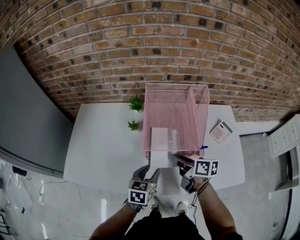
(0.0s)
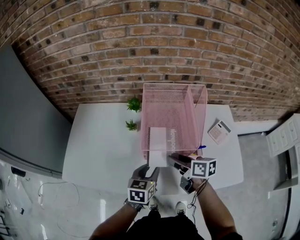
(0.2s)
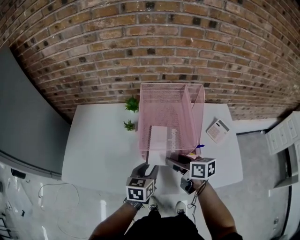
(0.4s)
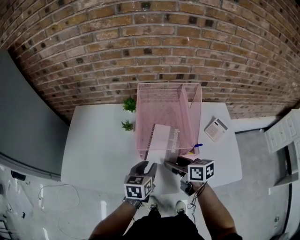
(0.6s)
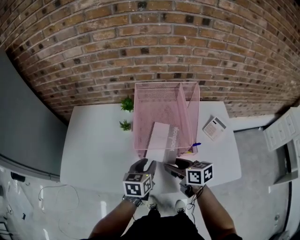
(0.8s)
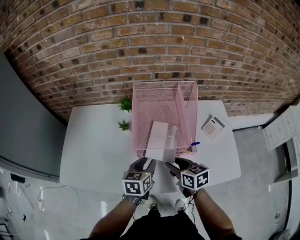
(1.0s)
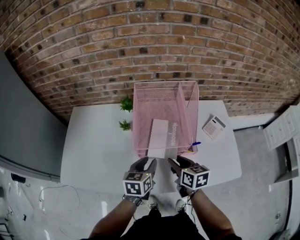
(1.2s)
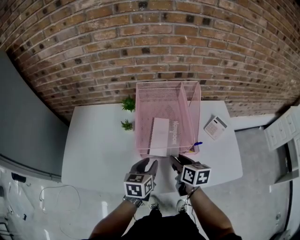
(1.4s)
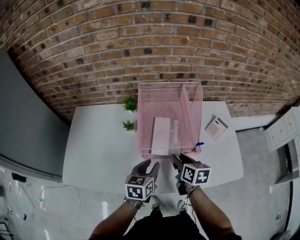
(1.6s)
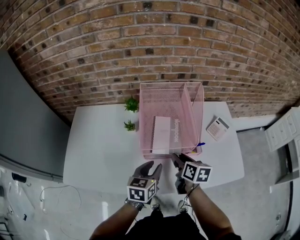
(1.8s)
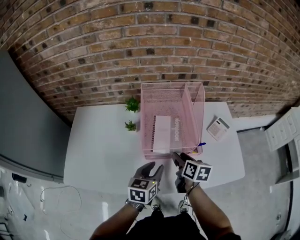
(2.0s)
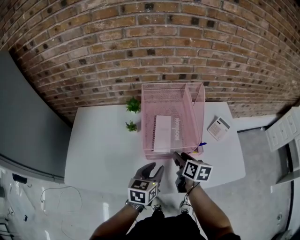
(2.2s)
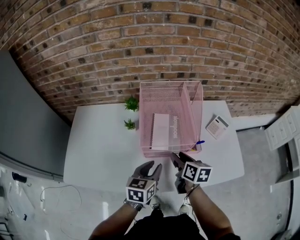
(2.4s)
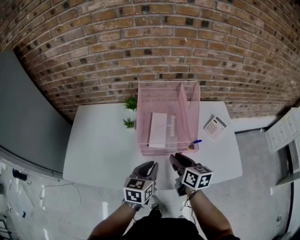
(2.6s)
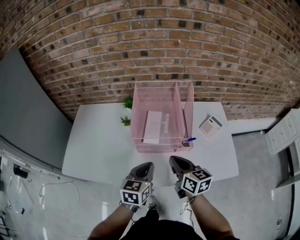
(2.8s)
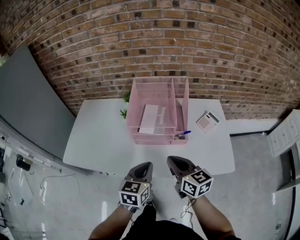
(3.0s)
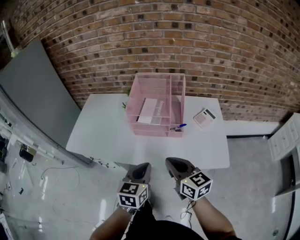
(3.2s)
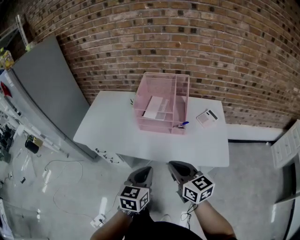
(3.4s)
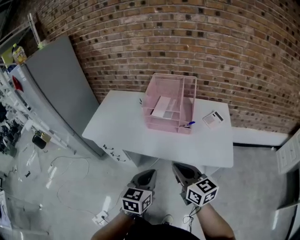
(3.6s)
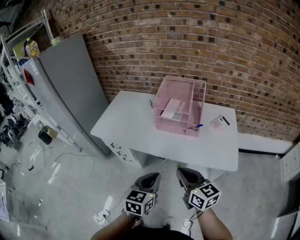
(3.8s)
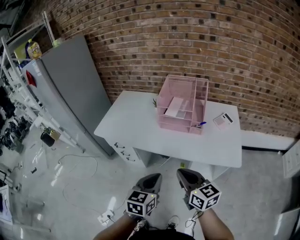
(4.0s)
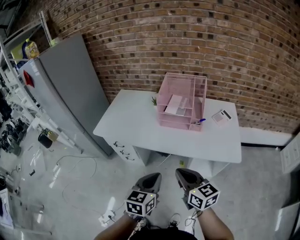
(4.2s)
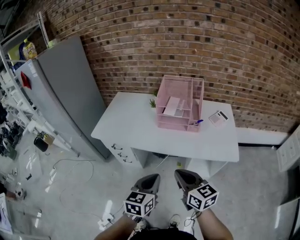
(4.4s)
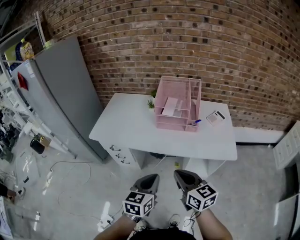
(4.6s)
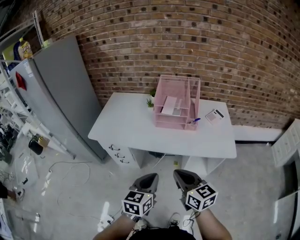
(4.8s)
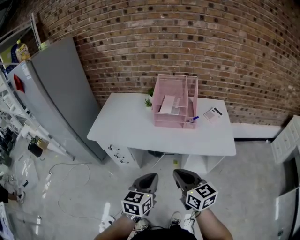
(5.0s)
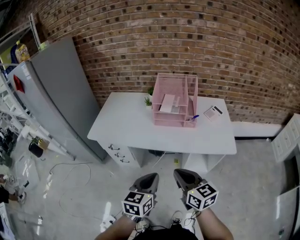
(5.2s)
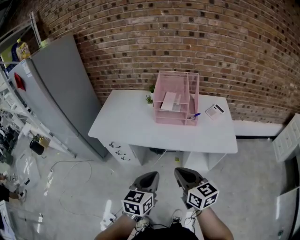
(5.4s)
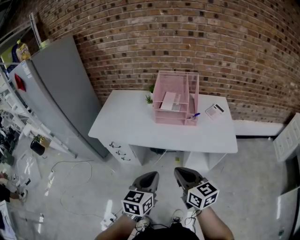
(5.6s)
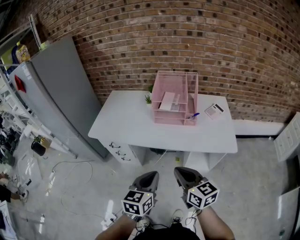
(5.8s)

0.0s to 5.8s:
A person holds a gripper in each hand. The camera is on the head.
0.0s to 1.4s: The right gripper rotates roughly 30 degrees.
1.4s to 2.8s: The left gripper travels backward and upward by roughly 10 cm, and closes its fingers. Meanwhile the right gripper moves upward and backward, approximately 10 cm, and closes its fingers.
2.8s to 4.4s: The grippers both shift backward by roughly 30 cm. The right gripper changes its angle by about 20 degrees.
4.4s to 5.8s: The grippers move only a little.

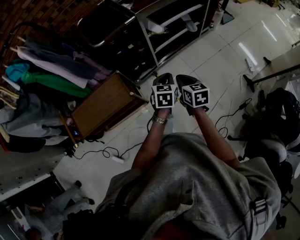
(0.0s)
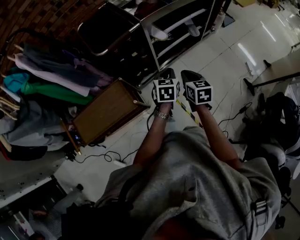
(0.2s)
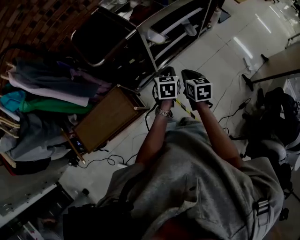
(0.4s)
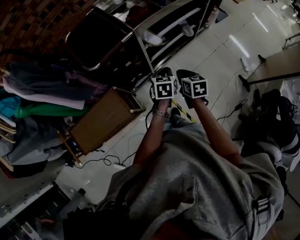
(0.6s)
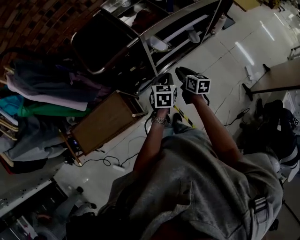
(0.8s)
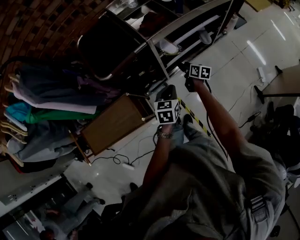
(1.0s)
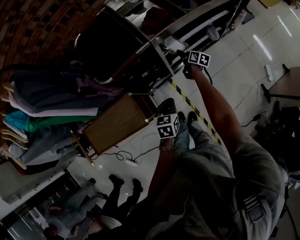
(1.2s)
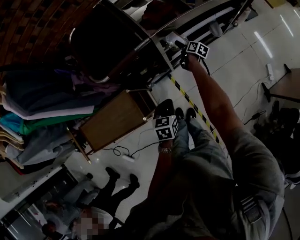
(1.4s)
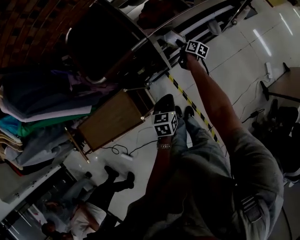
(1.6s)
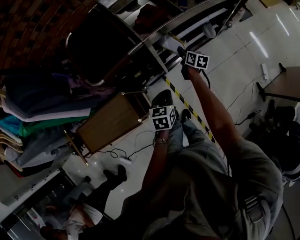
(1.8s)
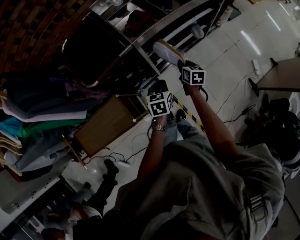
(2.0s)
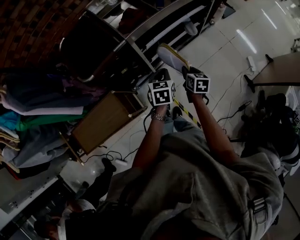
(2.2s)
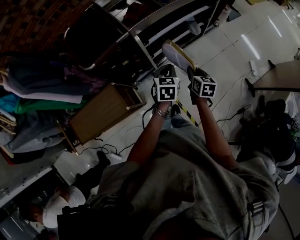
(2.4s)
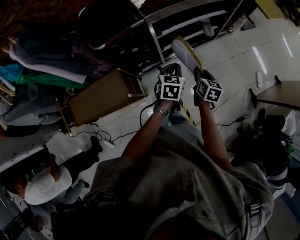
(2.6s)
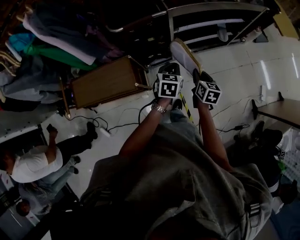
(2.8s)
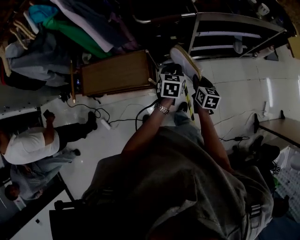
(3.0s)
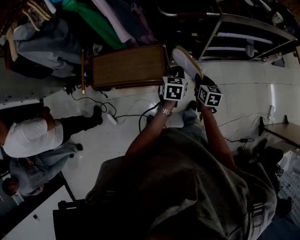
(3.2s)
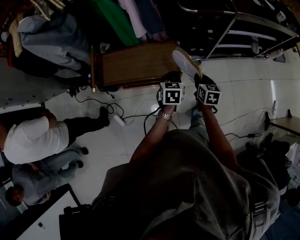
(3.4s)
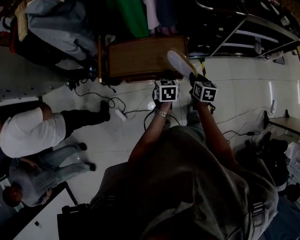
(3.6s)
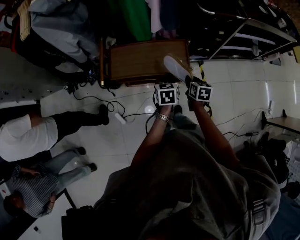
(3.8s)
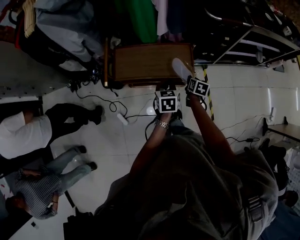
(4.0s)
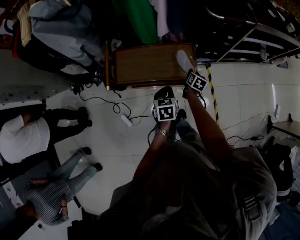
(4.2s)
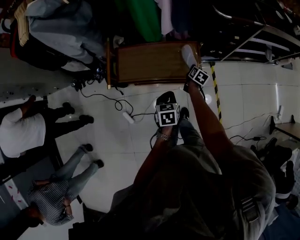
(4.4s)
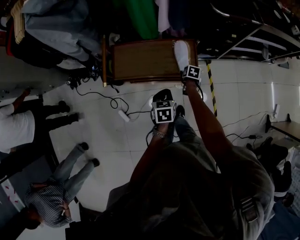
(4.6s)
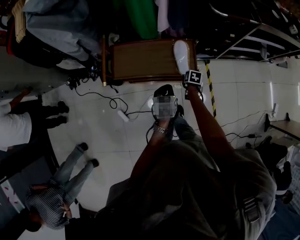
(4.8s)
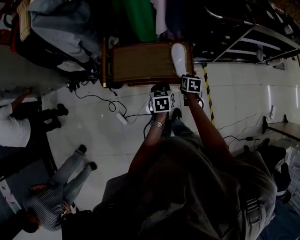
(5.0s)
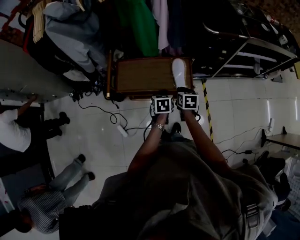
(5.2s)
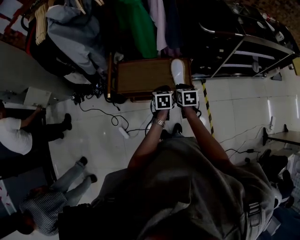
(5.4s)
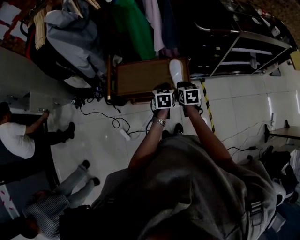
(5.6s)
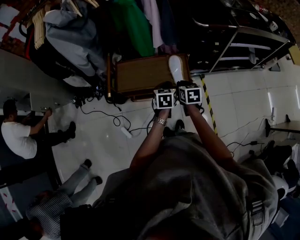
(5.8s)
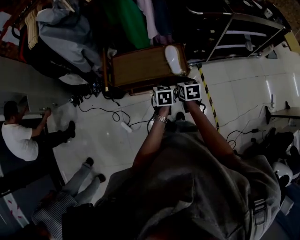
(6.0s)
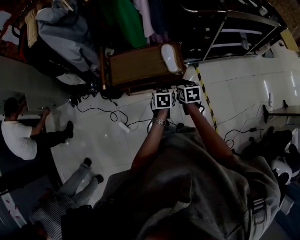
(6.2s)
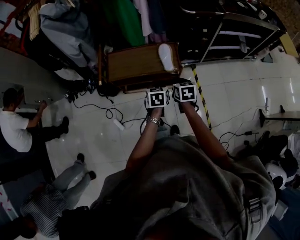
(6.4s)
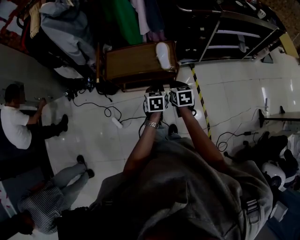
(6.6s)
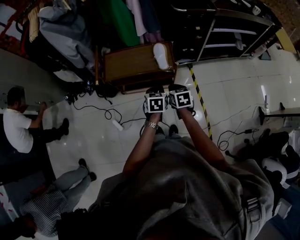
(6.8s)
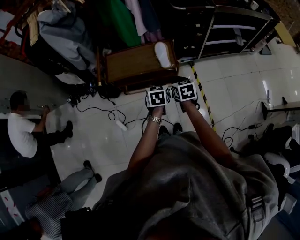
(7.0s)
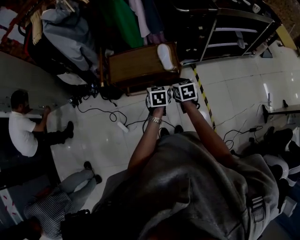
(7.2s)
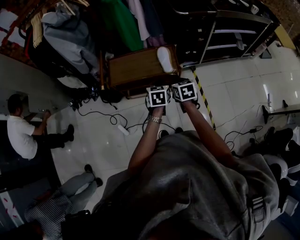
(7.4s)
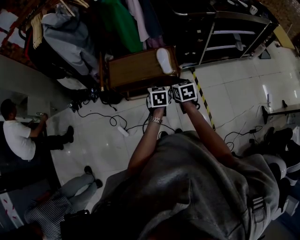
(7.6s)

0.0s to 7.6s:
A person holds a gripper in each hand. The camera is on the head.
0.0s to 1.6s: The left gripper travels forward, downward and to the left by approximately 20 cm. Meanwhile the right gripper travels forward and downward by roughly 50 cm, rolls clockwise, seen from behind, by about 40 degrees, and opens and closes again.
1.6s to 3.0s: The right gripper is displaced backward and upward by about 40 cm, and rotates around the line of its fingers by roughly 40 degrees, counterclockwise from behind. Meanwhile the left gripper goes about 10 cm upward and backward, and travels to the right and back again, approximately 15 cm each way.
3.0s to 4.6s: The pair of grippers is taken to the left, about 40 cm. The right gripper travels downward by some 20 cm, tilts its fingers about 30 degrees downward, and opens.
4.6s to 6.0s: The right gripper goes about 30 cm upward and backward, changes its angle by about 30 degrees, and closes up. The left gripper goes roughly 5 cm upward.
6.0s to 7.6s: The grippers both shift backward by roughly 5 cm.

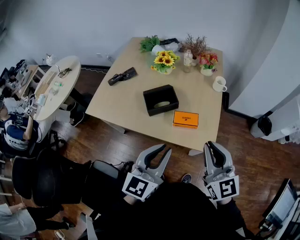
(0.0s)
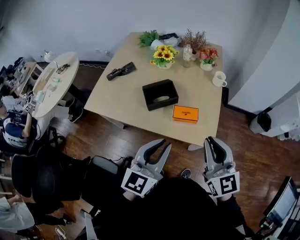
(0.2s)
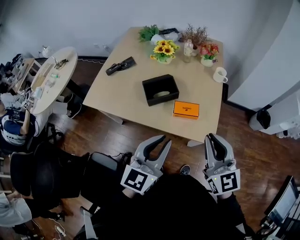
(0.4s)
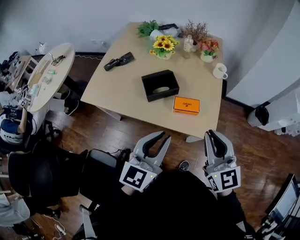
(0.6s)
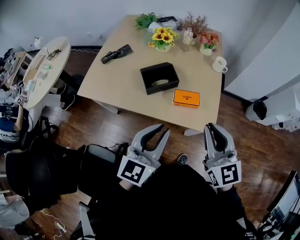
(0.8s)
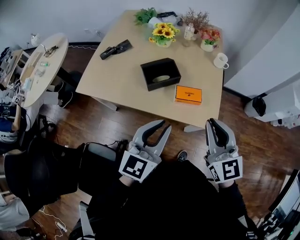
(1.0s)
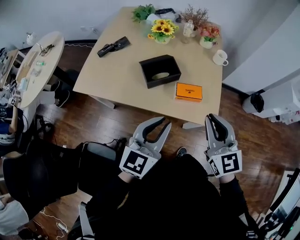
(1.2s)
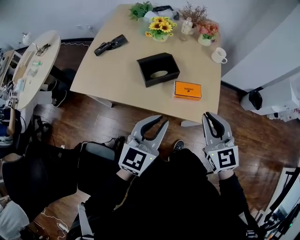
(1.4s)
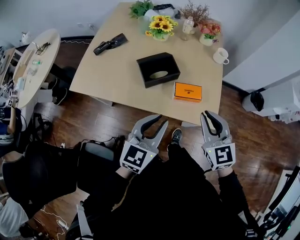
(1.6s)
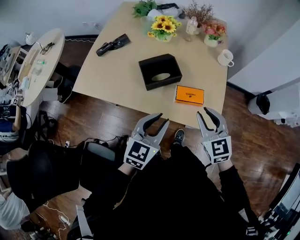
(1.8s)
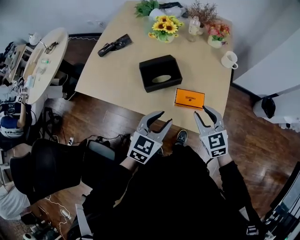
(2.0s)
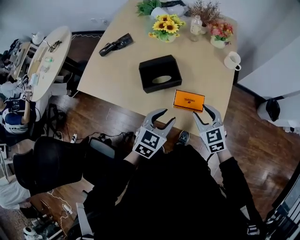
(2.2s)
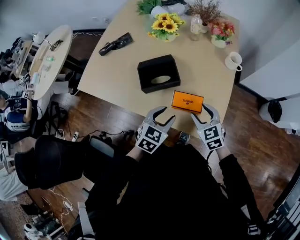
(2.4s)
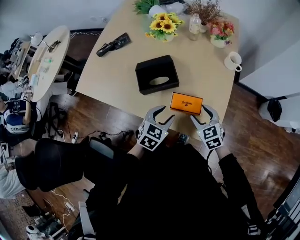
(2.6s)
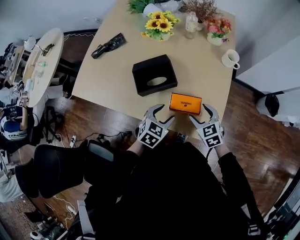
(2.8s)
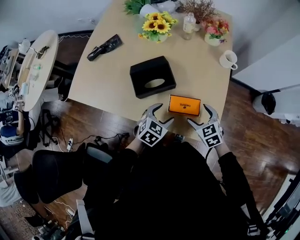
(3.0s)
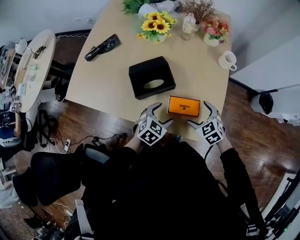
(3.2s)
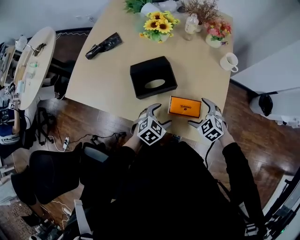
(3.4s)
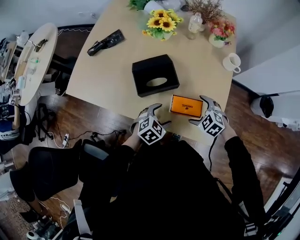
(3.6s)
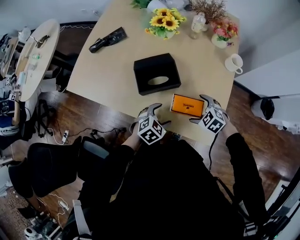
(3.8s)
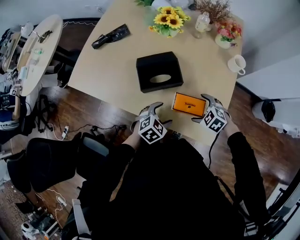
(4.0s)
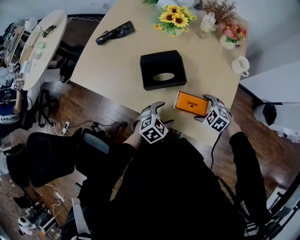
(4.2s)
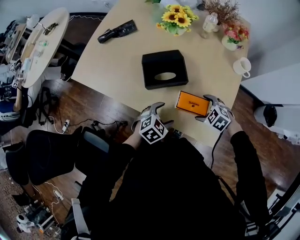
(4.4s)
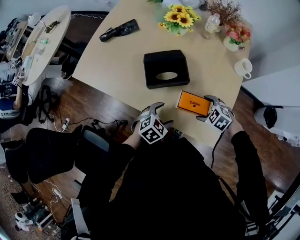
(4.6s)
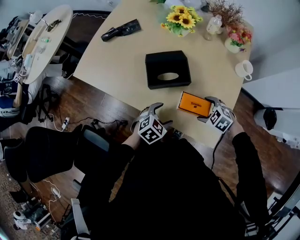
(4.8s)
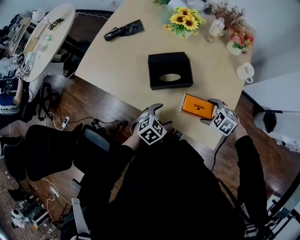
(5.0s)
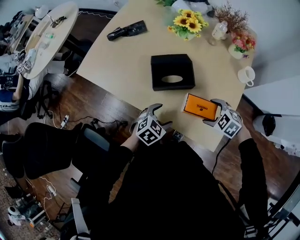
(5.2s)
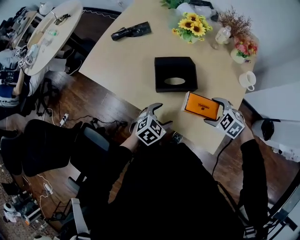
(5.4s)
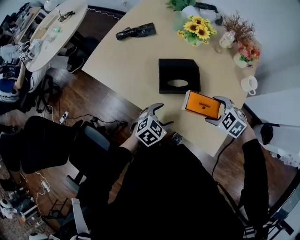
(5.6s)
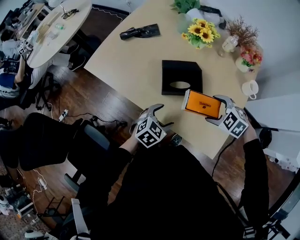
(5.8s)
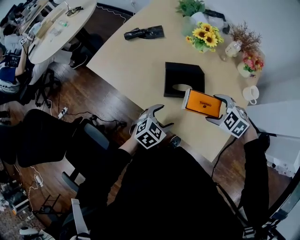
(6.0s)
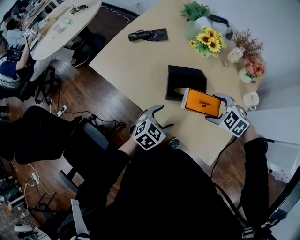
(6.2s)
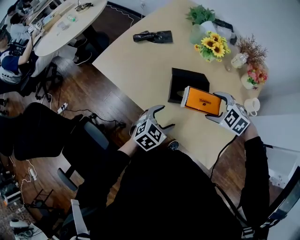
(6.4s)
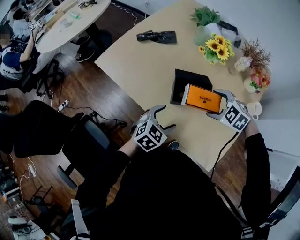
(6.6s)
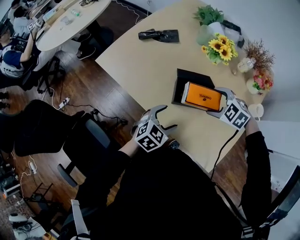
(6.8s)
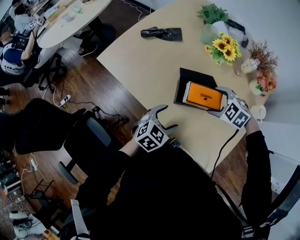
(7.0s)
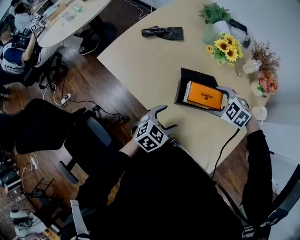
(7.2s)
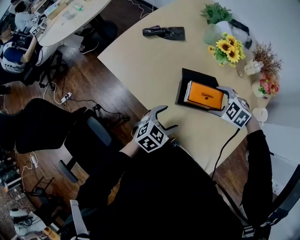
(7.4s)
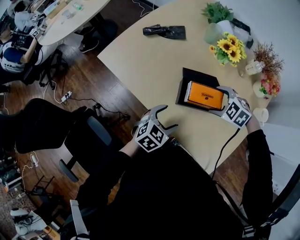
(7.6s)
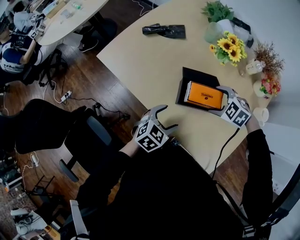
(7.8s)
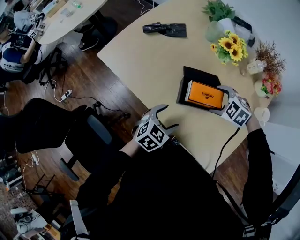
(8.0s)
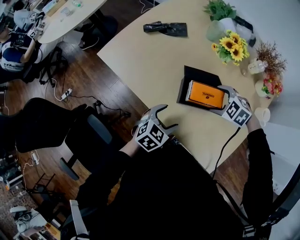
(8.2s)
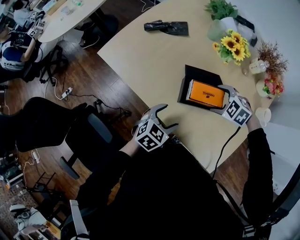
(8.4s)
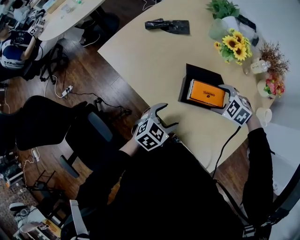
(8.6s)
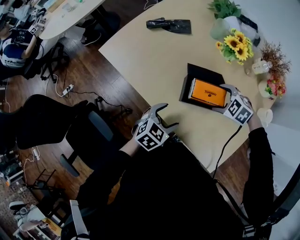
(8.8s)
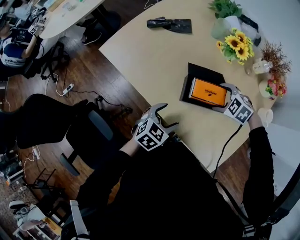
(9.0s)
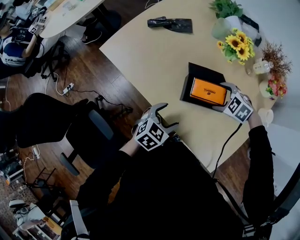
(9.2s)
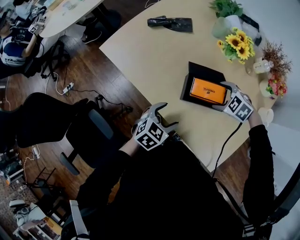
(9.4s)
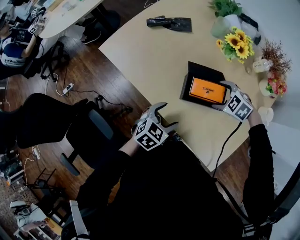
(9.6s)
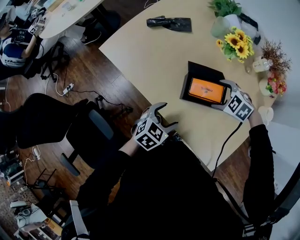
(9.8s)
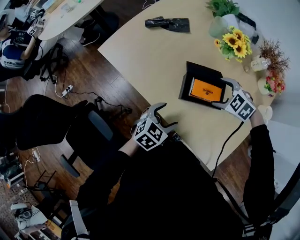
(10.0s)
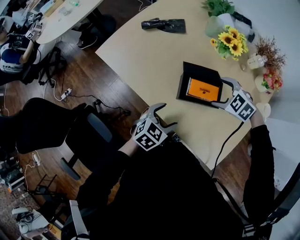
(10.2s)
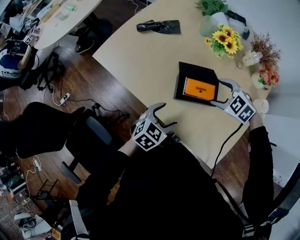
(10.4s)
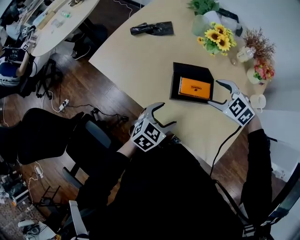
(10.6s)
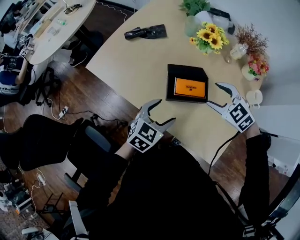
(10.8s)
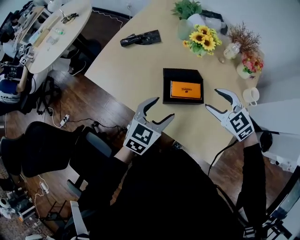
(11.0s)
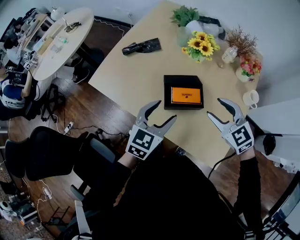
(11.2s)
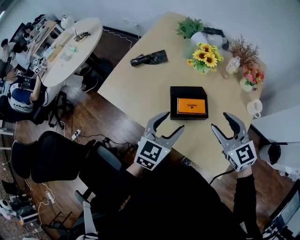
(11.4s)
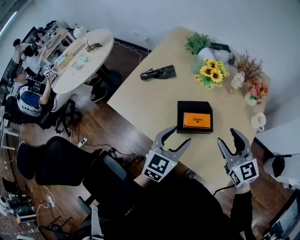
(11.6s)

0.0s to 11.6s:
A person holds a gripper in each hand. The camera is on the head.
0.0s to 1.4s: The two grippers go roughly 10 cm to the left and downward.
1.4s to 2.8s: Both grippers move downward and forward, approximately 30 cm. The right gripper rotates about 30 degrees, and opens its fingers. The left gripper points its fingers about 40 degrees further downward, and opens up.
2.8s to 4.4s: The right gripper travels downward by approximately 5 cm, and swivels about 40 degrees, while the left gripper moves roughly 5 cm.
4.4s to 5.8s: The left gripper is displaced to the left by about 5 cm; the right gripper is displaced upward and forward by about 10 cm.
5.8s to 7.2s: The left gripper ends up approximately 5 cm from where it was. Meanwhile the right gripper moves forward and to the left, about 15 cm.
7.2s to 10.2s: The grippers move only a little.
10.2s to 11.6s: The right gripper shifts approximately 25 cm upward and backward, points its fingers some 50 degrees further upward, and closes up. Meanwhile the left gripper moves upward, roughly 20 cm, and turns by roughly 30 degrees.
